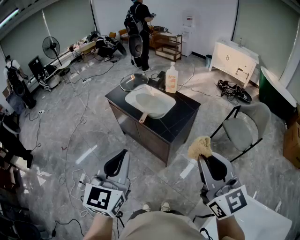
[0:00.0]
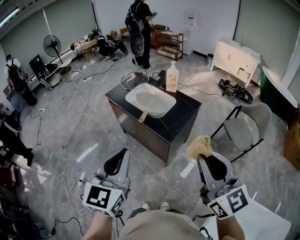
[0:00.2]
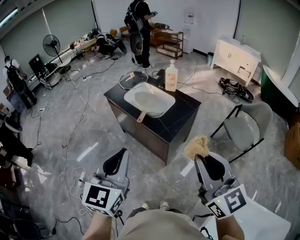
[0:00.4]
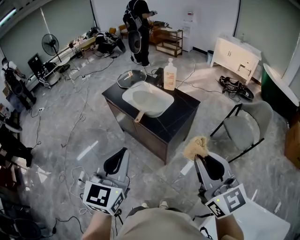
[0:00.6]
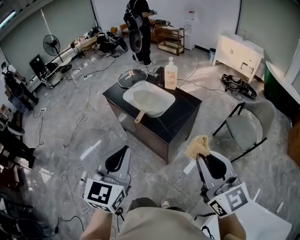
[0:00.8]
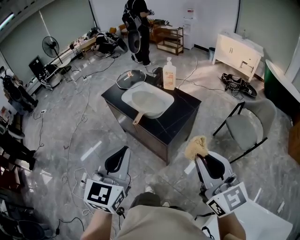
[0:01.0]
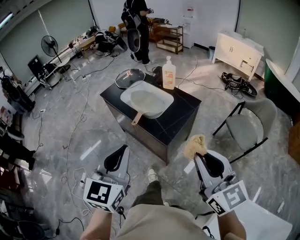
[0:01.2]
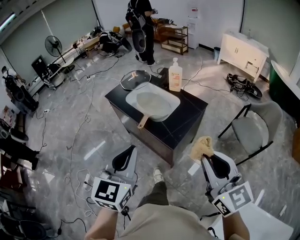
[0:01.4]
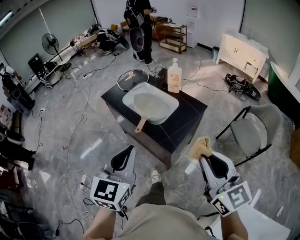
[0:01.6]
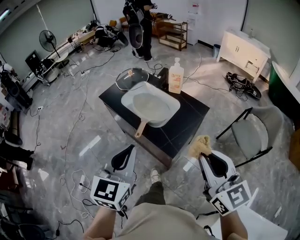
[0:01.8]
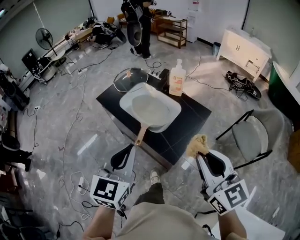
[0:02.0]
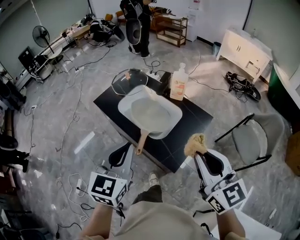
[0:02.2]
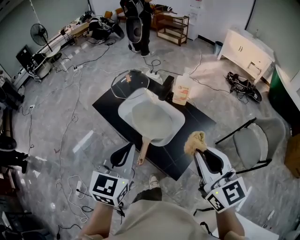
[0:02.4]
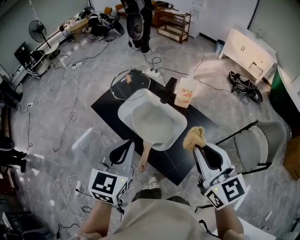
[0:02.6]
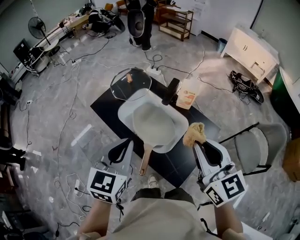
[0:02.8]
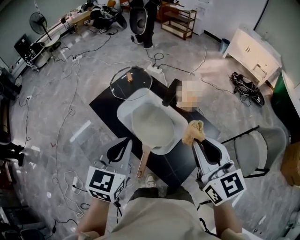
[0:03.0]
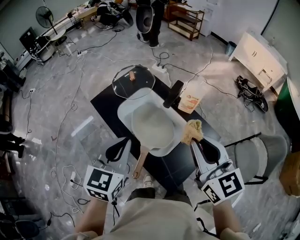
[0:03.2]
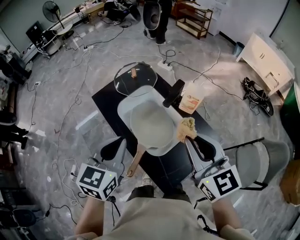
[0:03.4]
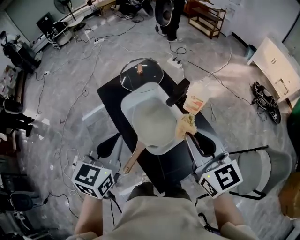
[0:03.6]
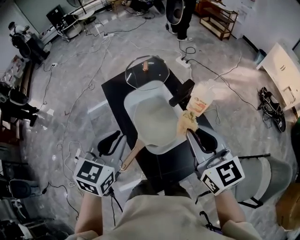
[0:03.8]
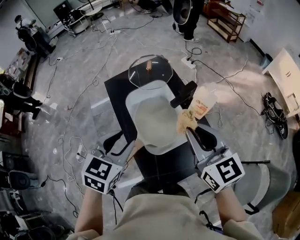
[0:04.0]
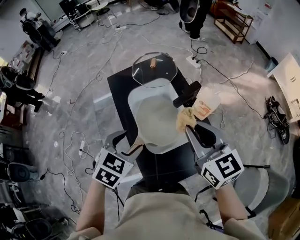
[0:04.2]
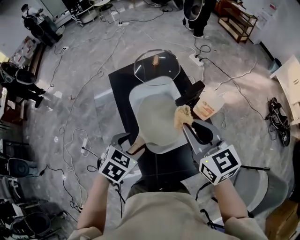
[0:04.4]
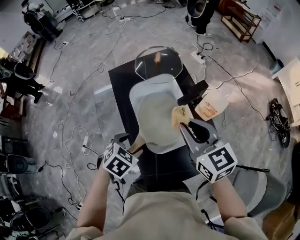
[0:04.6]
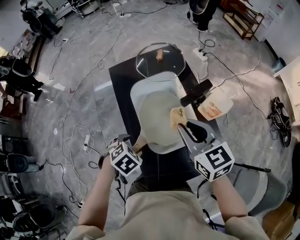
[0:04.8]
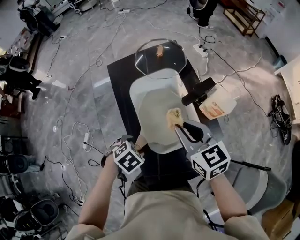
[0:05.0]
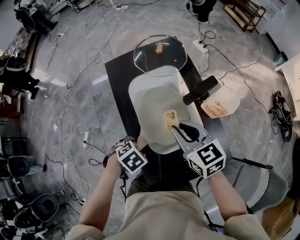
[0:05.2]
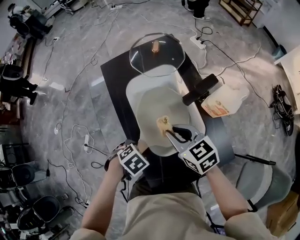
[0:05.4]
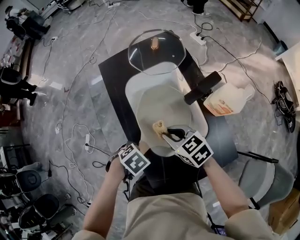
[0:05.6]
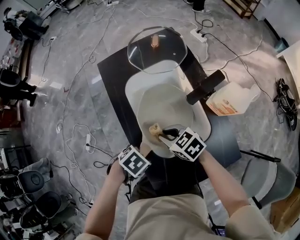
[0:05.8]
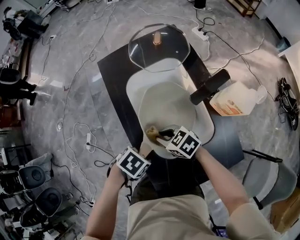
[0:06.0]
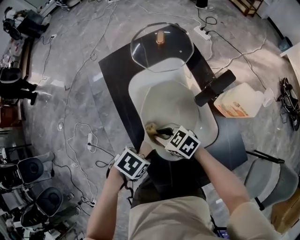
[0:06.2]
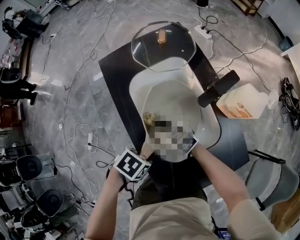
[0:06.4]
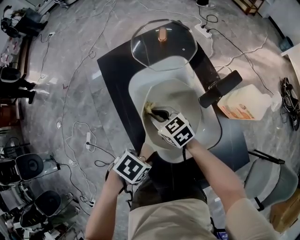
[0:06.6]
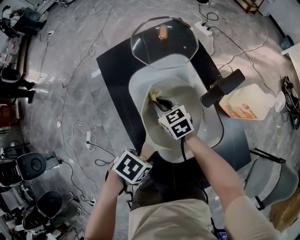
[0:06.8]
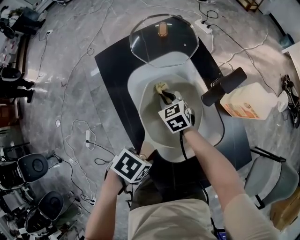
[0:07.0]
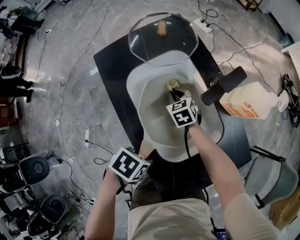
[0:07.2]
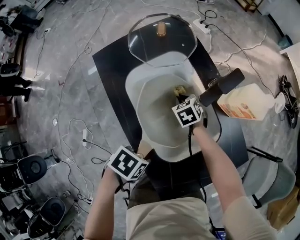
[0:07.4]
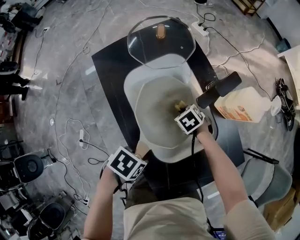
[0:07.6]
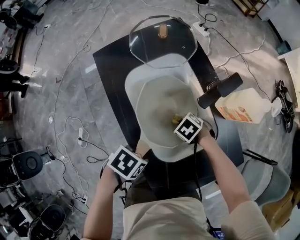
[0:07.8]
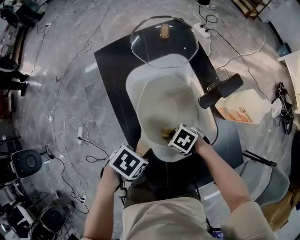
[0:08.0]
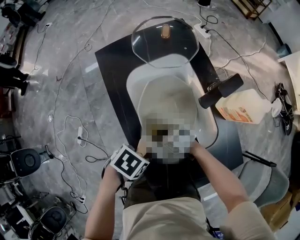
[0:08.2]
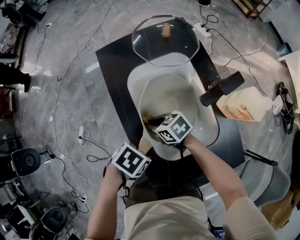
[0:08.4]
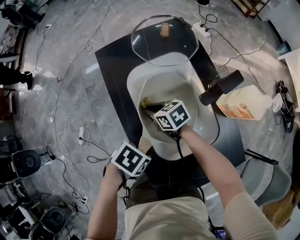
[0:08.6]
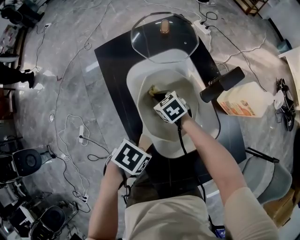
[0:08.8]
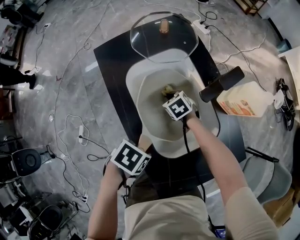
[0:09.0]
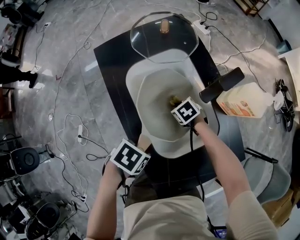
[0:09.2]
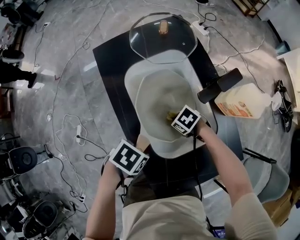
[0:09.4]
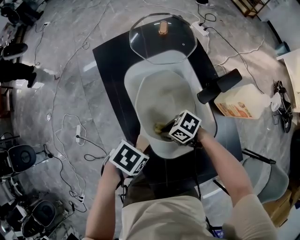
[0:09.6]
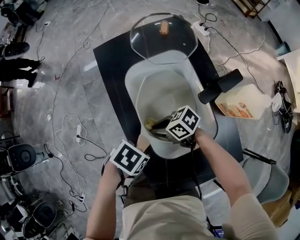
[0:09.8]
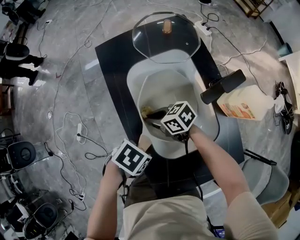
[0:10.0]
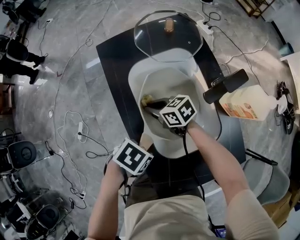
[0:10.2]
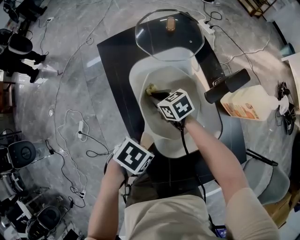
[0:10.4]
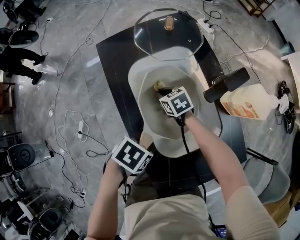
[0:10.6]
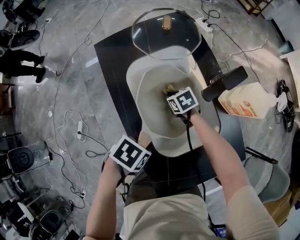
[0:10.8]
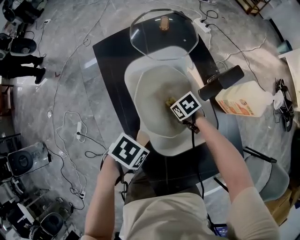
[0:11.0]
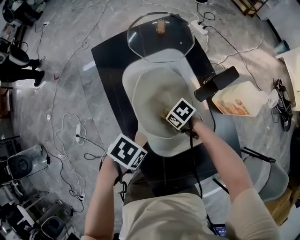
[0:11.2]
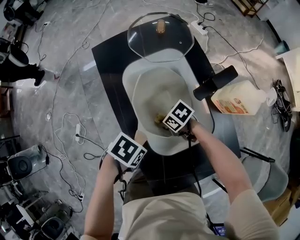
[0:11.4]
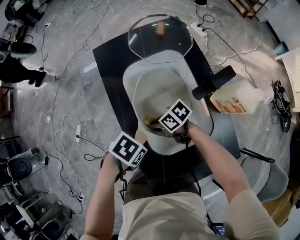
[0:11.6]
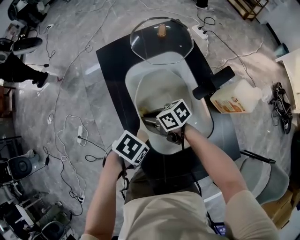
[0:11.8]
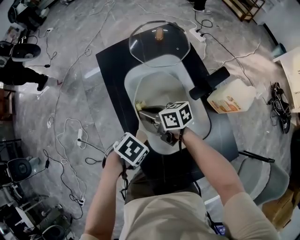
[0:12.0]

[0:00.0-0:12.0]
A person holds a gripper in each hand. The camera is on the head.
0:00.0 to 0:01.6: The two grippers go some 15 cm forward and downward.
0:01.6 to 0:03.0: The grippers both shift forward by some 35 cm.
0:03.0 to 0:04.4: The right gripper goes about 15 cm forward and downward, and turns by approximately 30 degrees; the left gripper heads downward, covering some 15 cm, angles its fingers downward, by about 40 degrees, and opens.
0:04.4 to 0:06.0: The right gripper shifts about 30 cm downward, and turns by approximately 50 degrees. The left gripper travels downward by roughly 15 cm, and swivels some 40 degrees.
0:06.0 to 0:07.6: The right gripper shifts by some 20 cm, and tilts its fingers approximately 30 degrees downward.
0:07.6 to 0:09.0: The right gripper reaches roughly 5 cm upward, then returns.
0:09.0 to 0:10.4: The right gripper swivels some 20 degrees.
0:10.4 to 0:12.0: The right gripper moves upward, approximately 10 cm, and changes its angle by approximately 30 degrees.

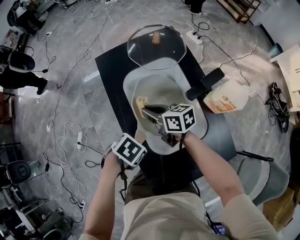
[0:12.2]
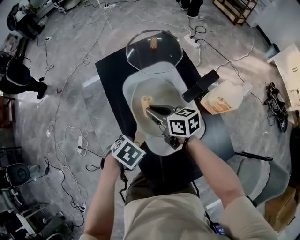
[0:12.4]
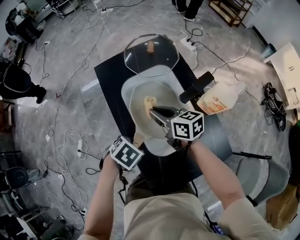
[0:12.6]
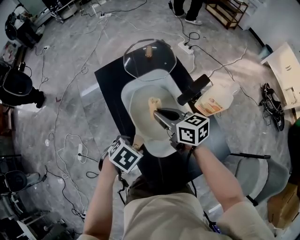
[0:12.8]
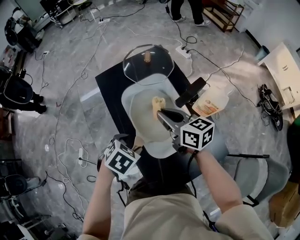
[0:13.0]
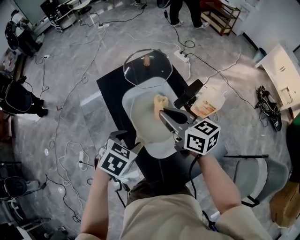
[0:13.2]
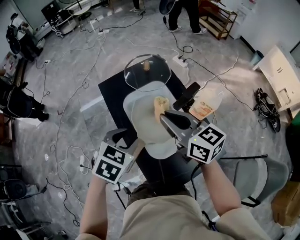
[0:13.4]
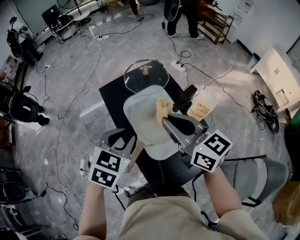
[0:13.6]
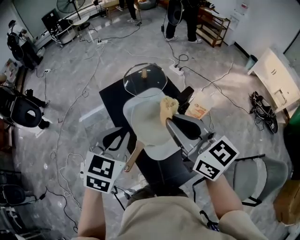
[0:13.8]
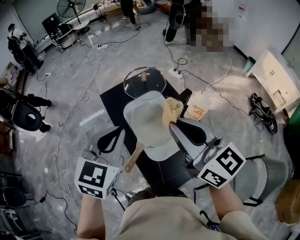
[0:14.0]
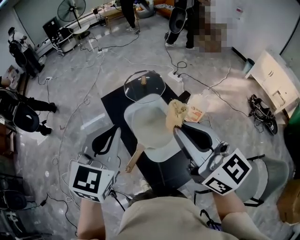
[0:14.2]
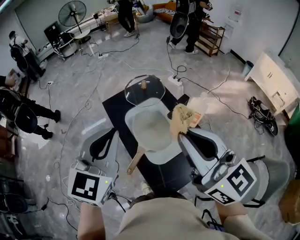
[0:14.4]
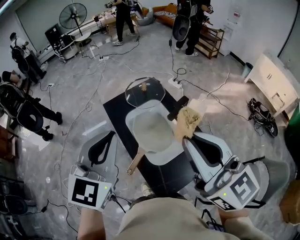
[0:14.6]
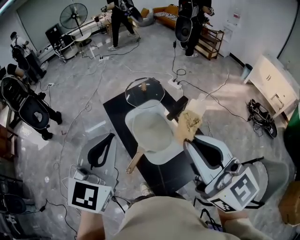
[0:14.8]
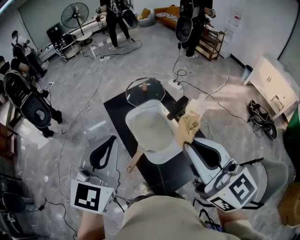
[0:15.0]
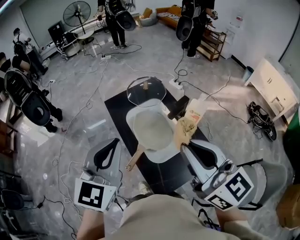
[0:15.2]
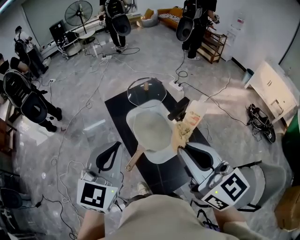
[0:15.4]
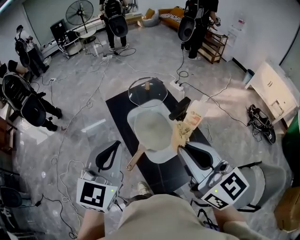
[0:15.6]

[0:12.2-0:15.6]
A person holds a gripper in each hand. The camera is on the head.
0:12.2 to 0:13.8: Both grippers travel together upward, roughly 30 cm. The left gripper tips its fingers upward by approximately 40 degrees, and closes up, while the right gripper swivels approximately 50 degrees.
0:13.8 to 0:15.6: The right gripper goes roughly 15 cm backward and upward; the left gripper moves upward and backward, about 15 cm, and changes its angle by approximately 20 degrees.

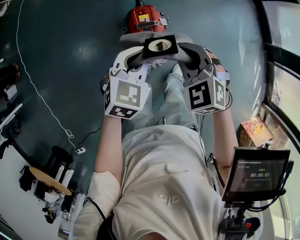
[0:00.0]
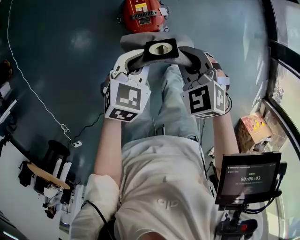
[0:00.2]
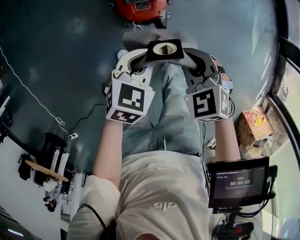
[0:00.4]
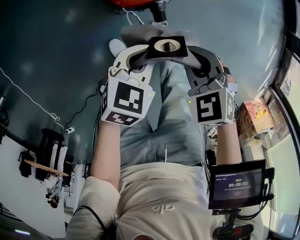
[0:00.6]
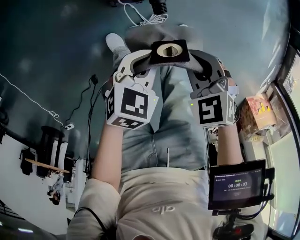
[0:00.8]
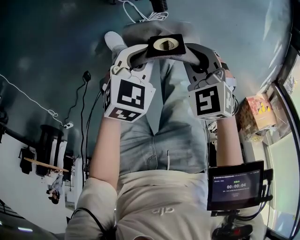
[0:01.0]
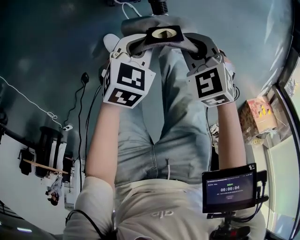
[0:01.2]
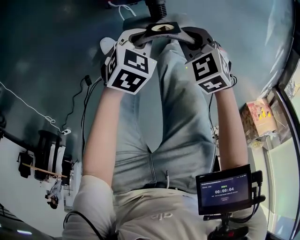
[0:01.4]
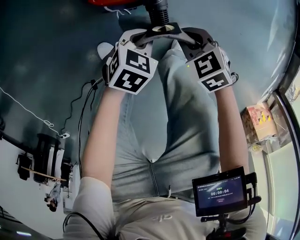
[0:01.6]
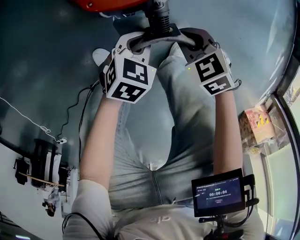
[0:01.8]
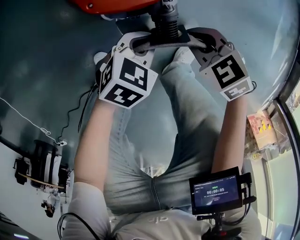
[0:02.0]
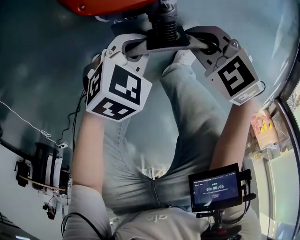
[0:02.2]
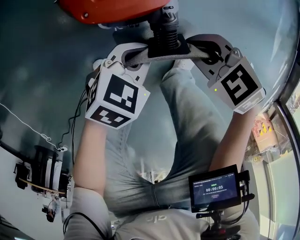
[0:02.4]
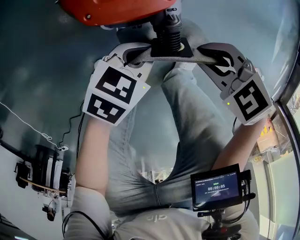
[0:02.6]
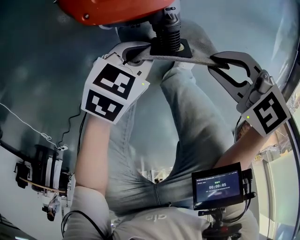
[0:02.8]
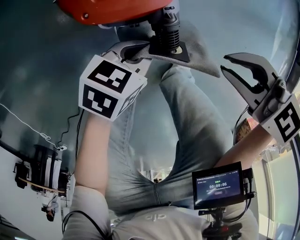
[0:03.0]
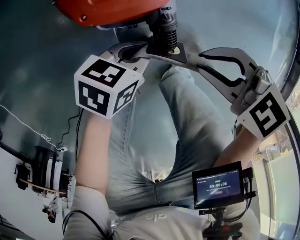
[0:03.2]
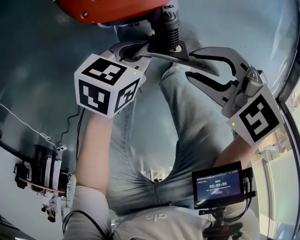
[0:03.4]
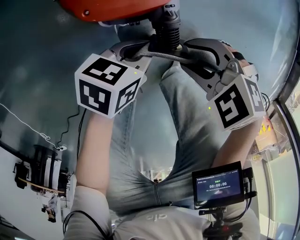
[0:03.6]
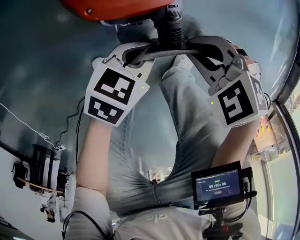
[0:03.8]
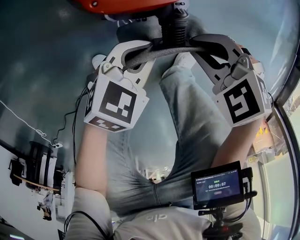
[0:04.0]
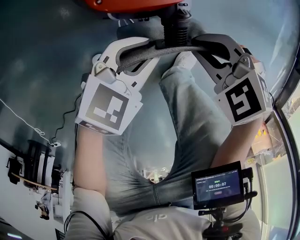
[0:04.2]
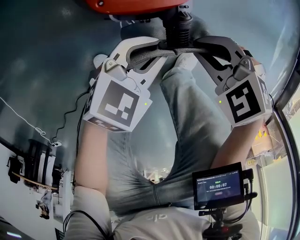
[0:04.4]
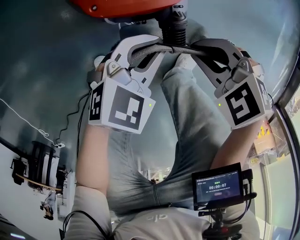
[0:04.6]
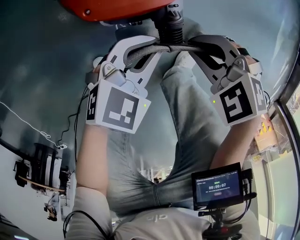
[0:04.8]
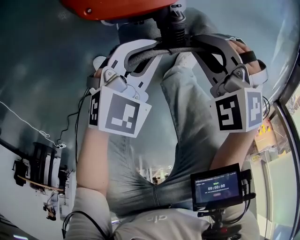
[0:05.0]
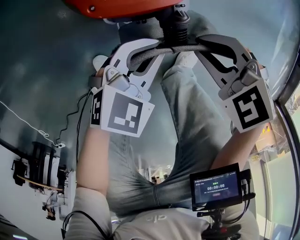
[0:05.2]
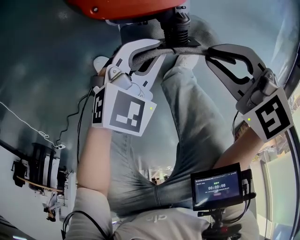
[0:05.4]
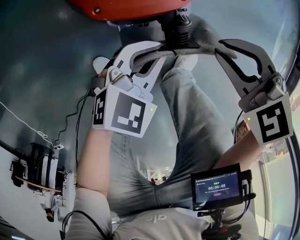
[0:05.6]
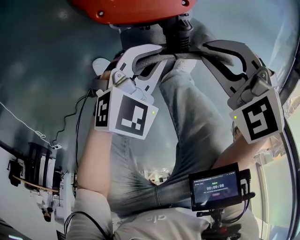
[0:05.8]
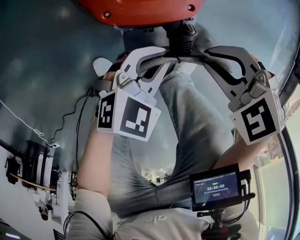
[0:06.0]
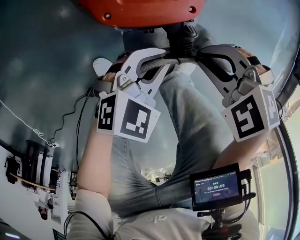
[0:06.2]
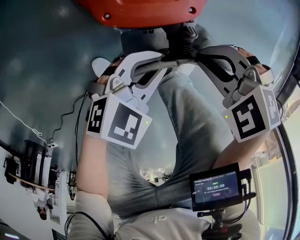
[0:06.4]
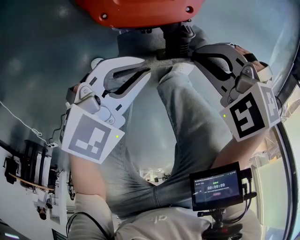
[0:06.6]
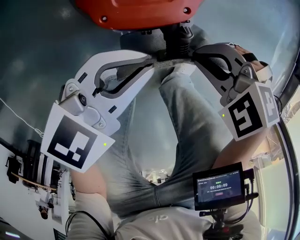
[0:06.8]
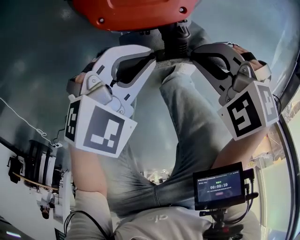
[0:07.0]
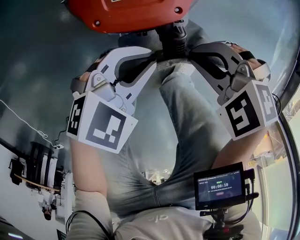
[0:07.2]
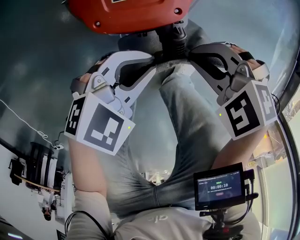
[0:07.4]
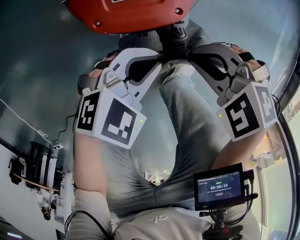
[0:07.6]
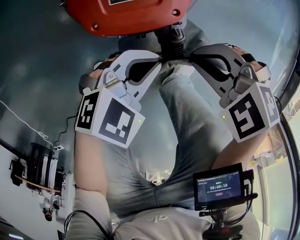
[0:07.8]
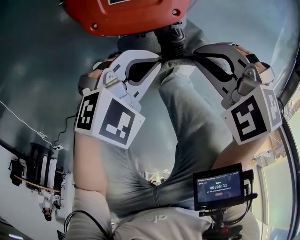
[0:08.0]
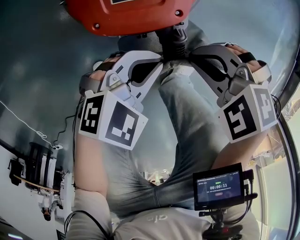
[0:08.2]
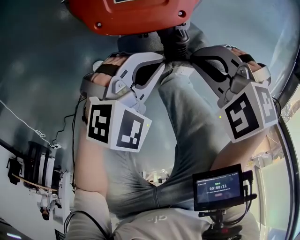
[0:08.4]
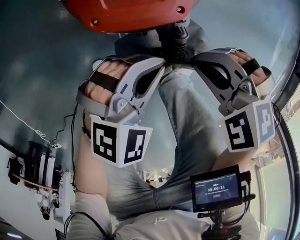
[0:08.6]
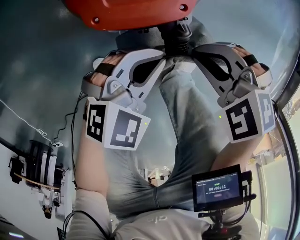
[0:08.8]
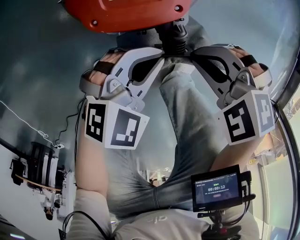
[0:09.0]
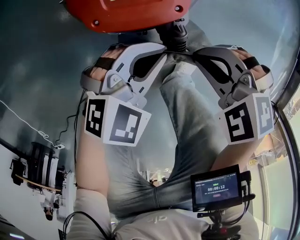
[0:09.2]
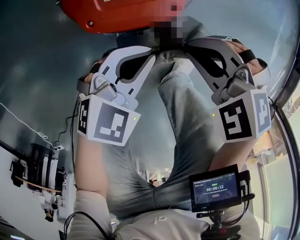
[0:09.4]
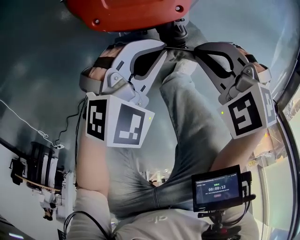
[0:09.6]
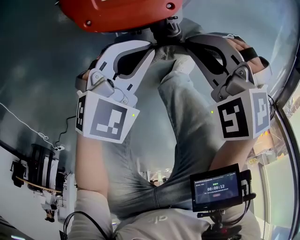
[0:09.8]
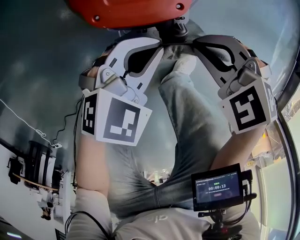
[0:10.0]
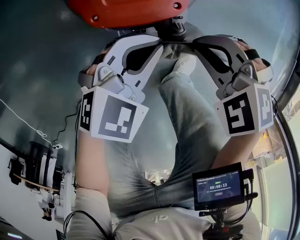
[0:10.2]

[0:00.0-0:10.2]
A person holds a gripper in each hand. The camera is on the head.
0:00.0 to 0:01.4: The two grippers go about 50 cm downward. The right gripper turns by some 30 degrees; the left gripper changes its angle by about 30 degrees.
0:01.4 to 0:03.0: The left gripper heads downward, covering some 10 cm, while the right gripper moves approximately 10 cm downward and comes back, and rotates some 20 degrees.
0:03.0 to 0:04.4: The right gripper is displaced downward by about 5 cm, swivels some 20 degrees, and opens, then closes again. Meanwhile the left gripper changes its angle by about 20 degrees.
0:07.2 to 0:10.2: The grippers make only small movements.
